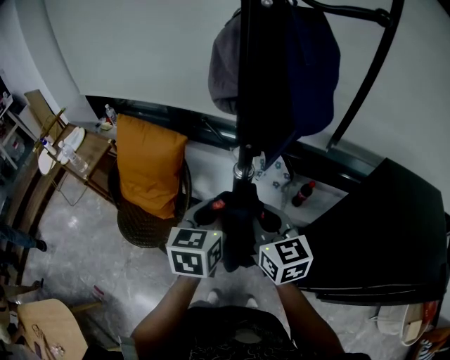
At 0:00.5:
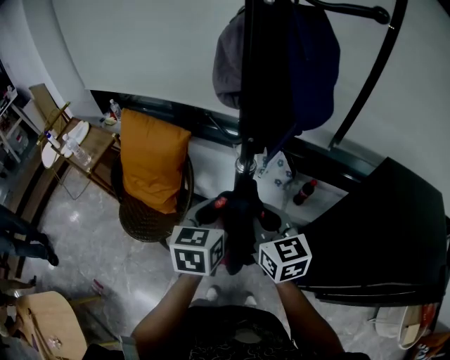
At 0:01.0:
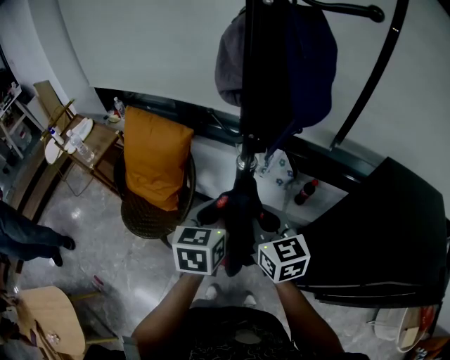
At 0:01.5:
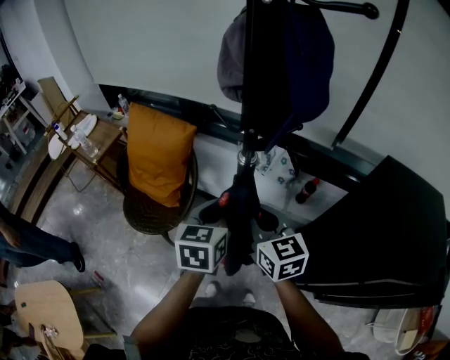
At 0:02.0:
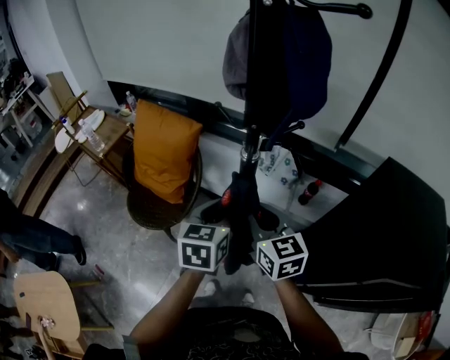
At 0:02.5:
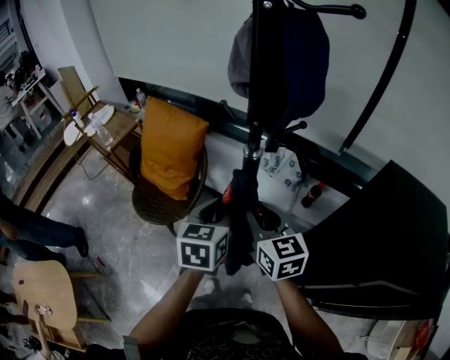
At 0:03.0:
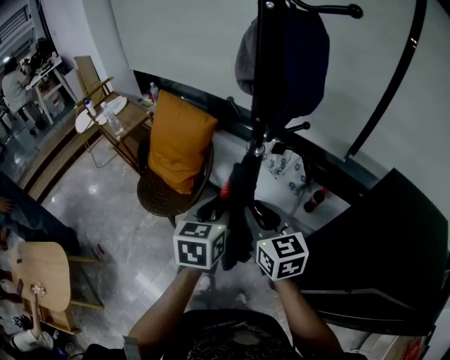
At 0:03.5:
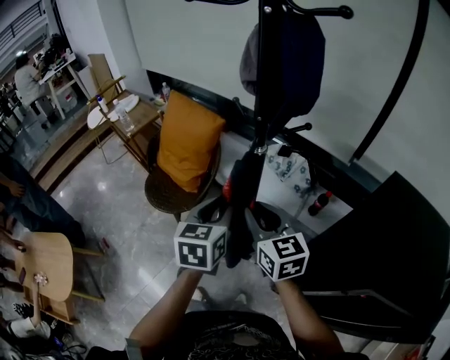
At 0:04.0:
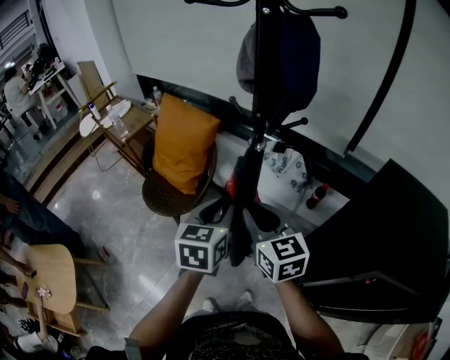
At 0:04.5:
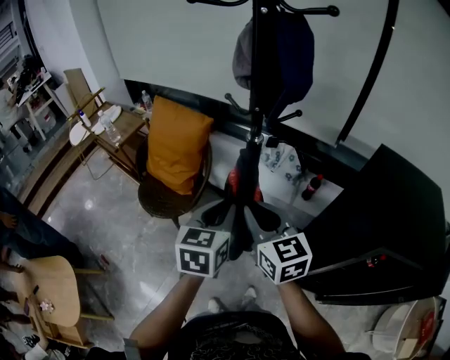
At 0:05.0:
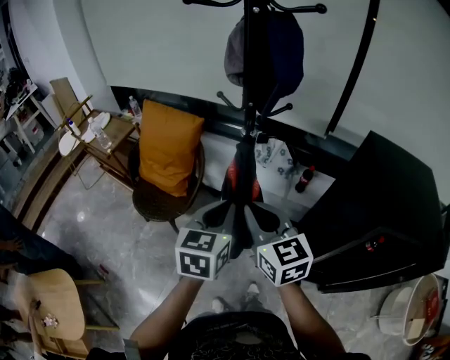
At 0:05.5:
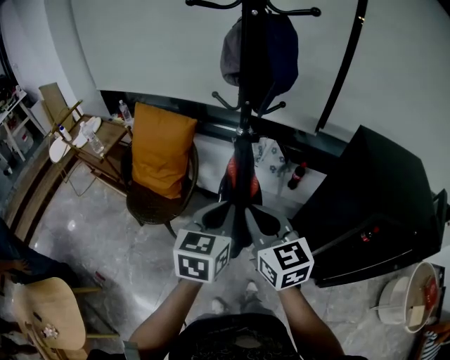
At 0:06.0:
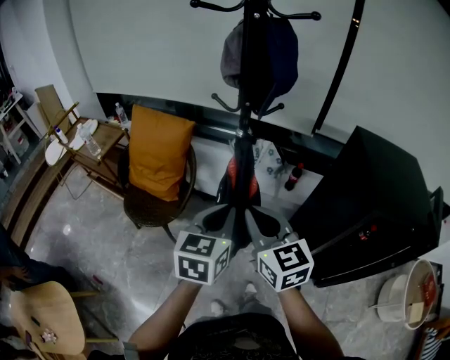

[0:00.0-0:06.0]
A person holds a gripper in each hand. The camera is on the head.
0:00.0 to 0:02.0: The left gripper heads backward, covering approximately 5 cm. Meanwhile the right gripper moves some 5 cm.
0:02.0 to 0:04.0: The grippers both shift backward by about 5 cm.
0:04.0 to 0:06.0: The two grippers go about 10 cm backward. The left gripper closes up.

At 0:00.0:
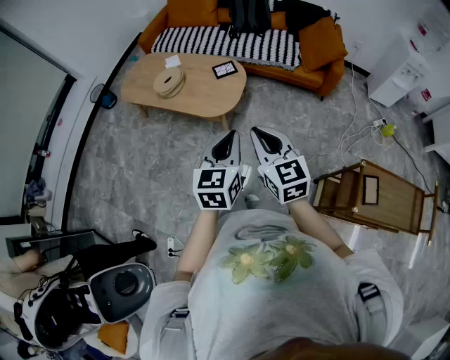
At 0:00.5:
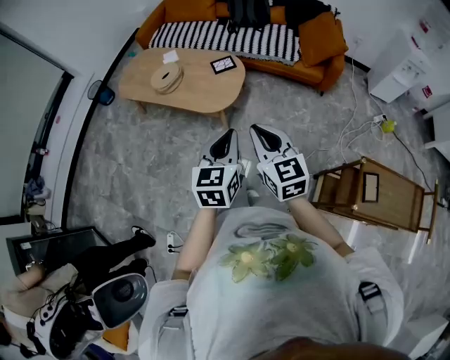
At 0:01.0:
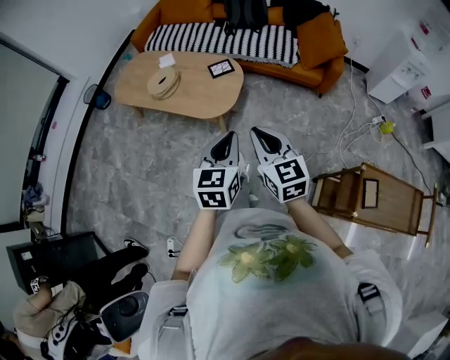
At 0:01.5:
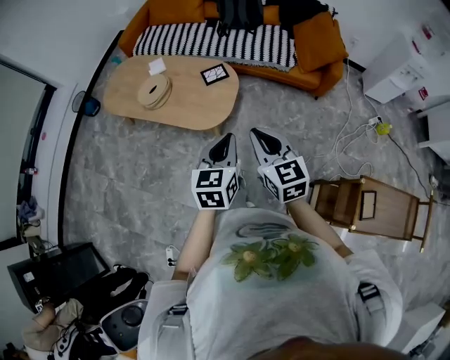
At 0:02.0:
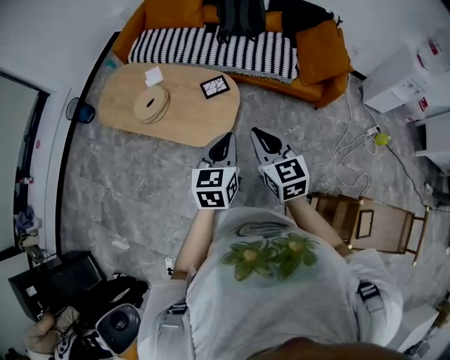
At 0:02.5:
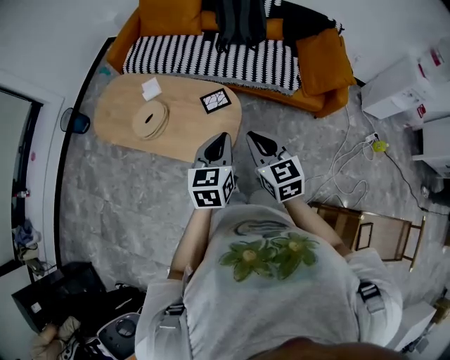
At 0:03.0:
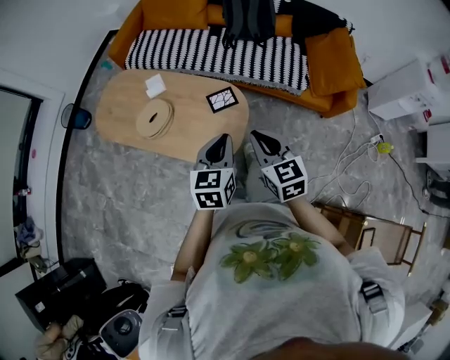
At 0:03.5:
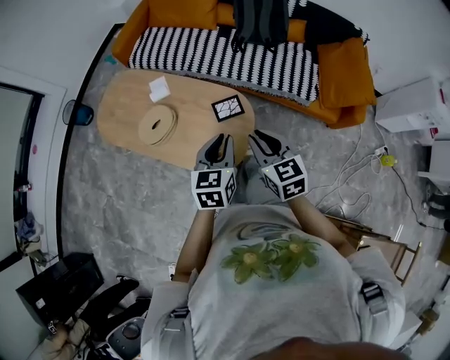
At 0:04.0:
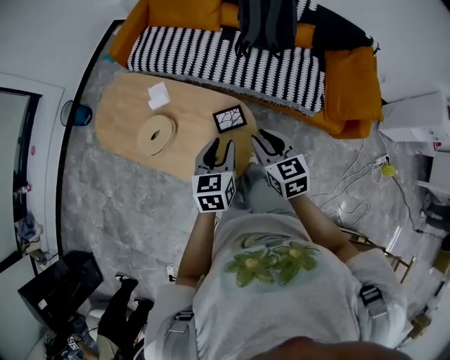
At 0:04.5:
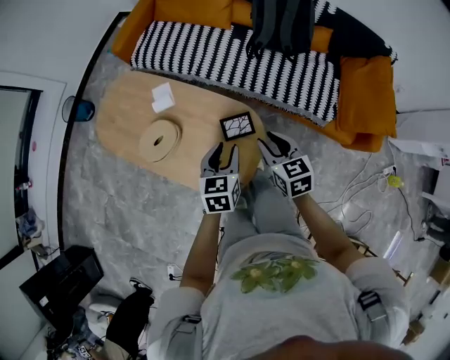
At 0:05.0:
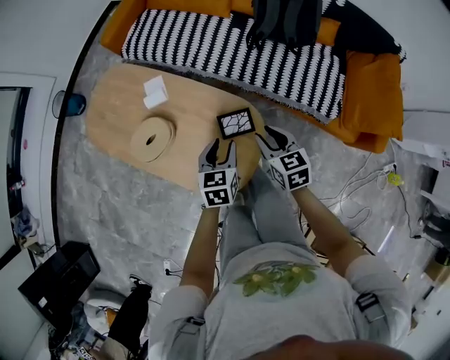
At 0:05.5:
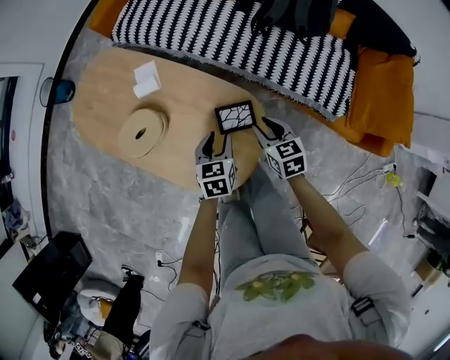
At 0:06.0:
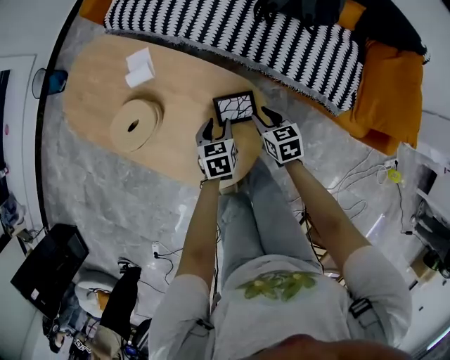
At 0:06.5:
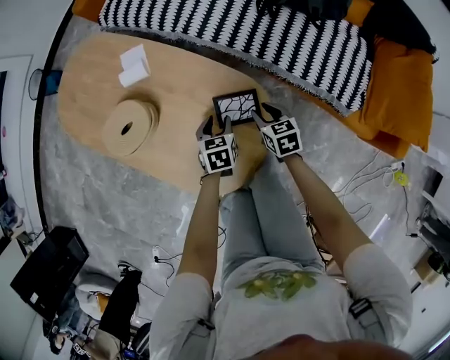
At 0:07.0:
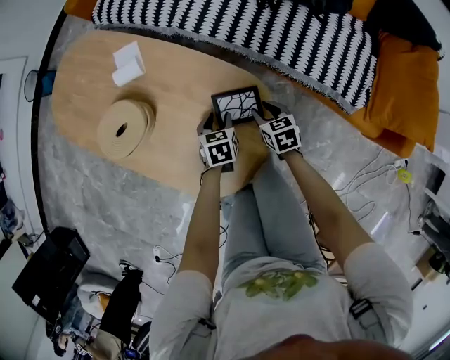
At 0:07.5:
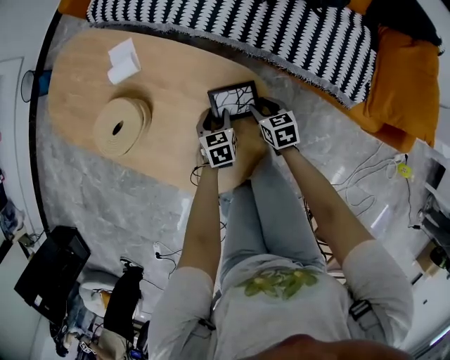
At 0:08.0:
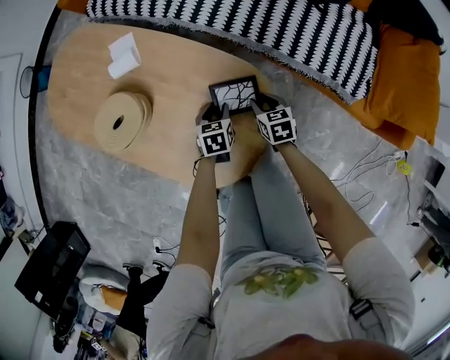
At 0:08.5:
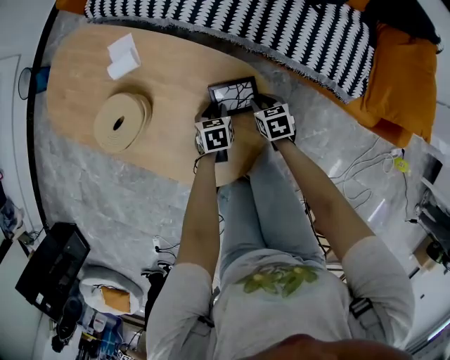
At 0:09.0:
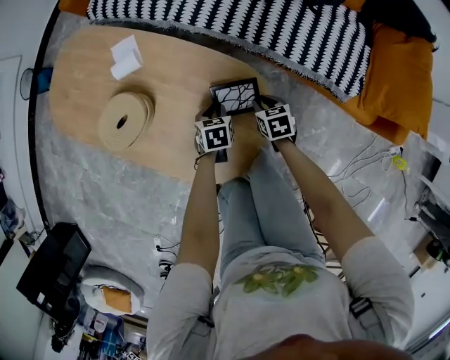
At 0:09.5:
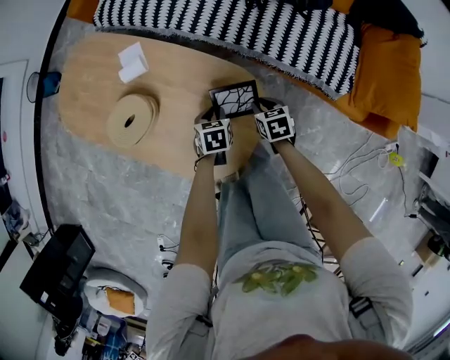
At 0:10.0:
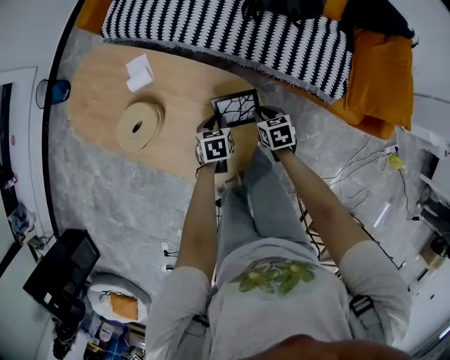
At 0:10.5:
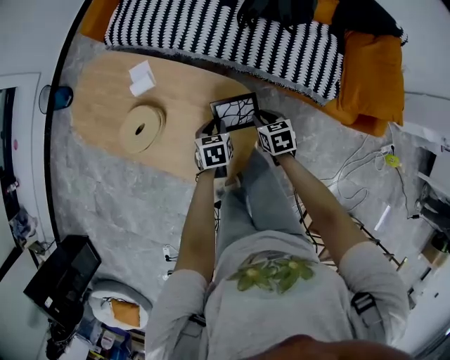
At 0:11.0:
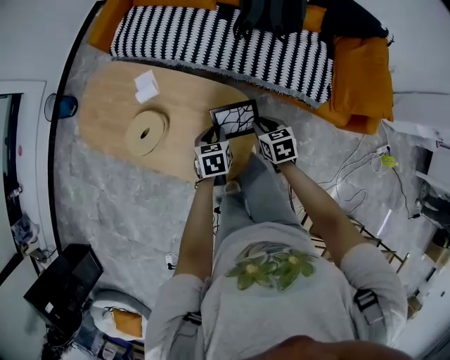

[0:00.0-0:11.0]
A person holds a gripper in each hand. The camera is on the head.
0:00.0 to 0:02.0: The grippers both shift forward by some 25 cm.
0:02.0 to 0:03.5: The two grippers go about 20 cm forward.
0:03.5 to 0:05.5: Both grippers move downward and forward, about 35 cm. The left gripper turns by approximately 20 degrees, and opens up.
0:05.5 to 0:07.5: The two grippers go approximately 20 cm downward.
0:07.5 to 0:09.0: The left gripper closes up.
0:09.0 to 0:11.0: The grippers both shift upward by roughly 25 cm.

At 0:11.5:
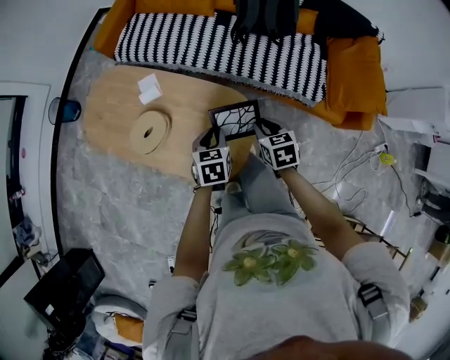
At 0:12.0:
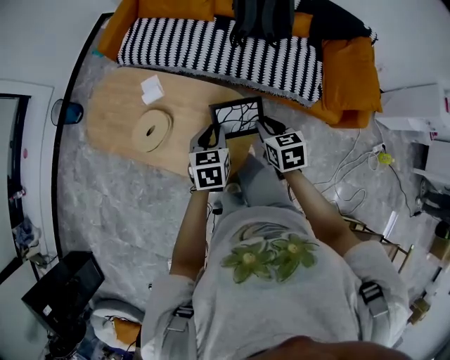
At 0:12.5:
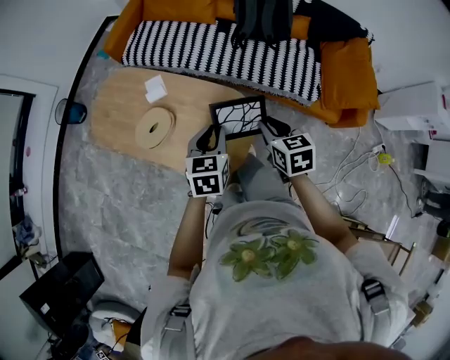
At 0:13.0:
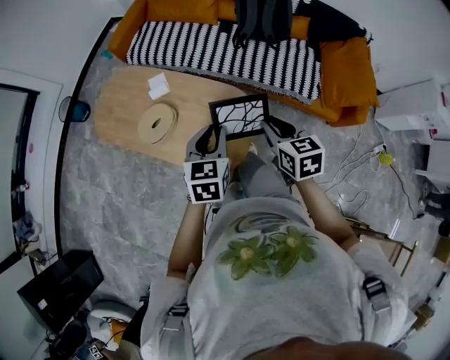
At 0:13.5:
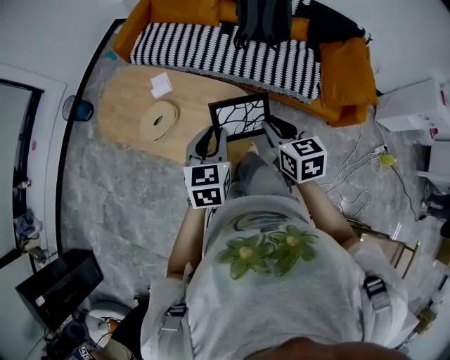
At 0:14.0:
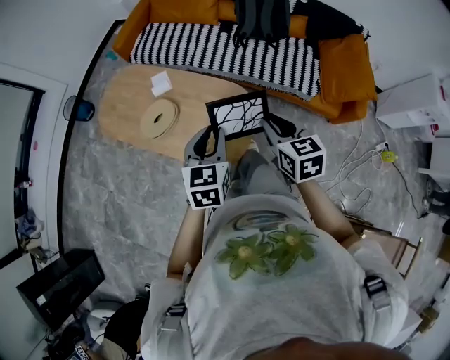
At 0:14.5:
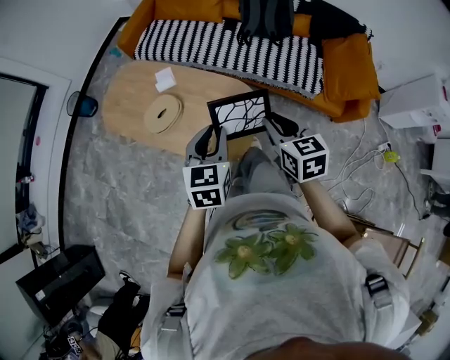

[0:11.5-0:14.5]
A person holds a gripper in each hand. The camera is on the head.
0:11.5 to 0:13.0: Both grippers move upward and backward, some 20 cm.
0:13.0 to 0:14.5: Both grippers move backward, some 5 cm.

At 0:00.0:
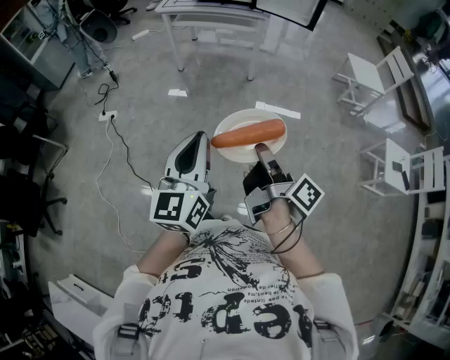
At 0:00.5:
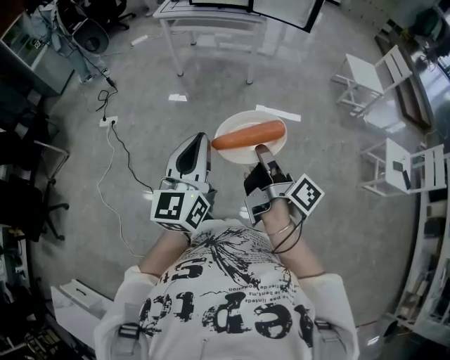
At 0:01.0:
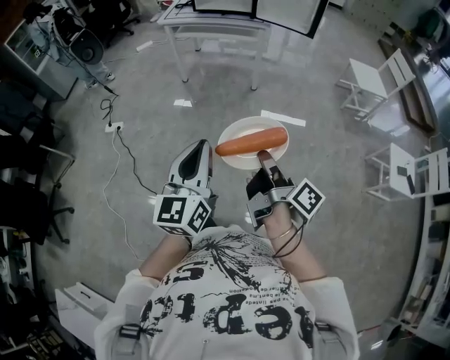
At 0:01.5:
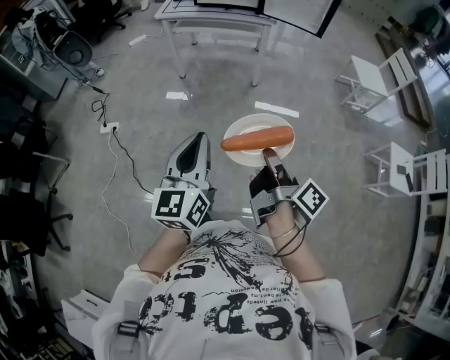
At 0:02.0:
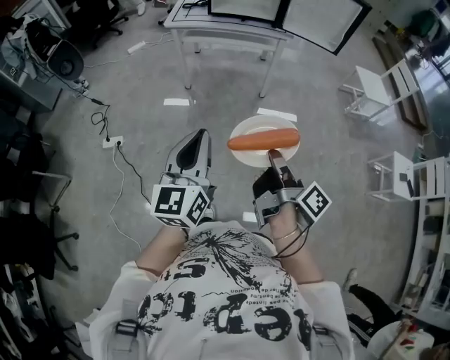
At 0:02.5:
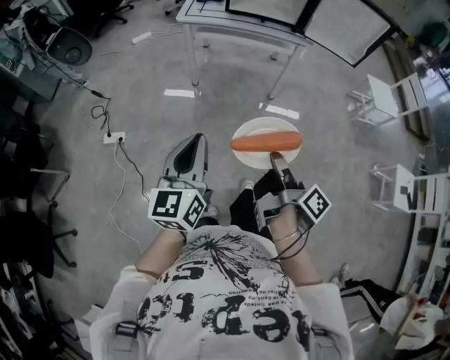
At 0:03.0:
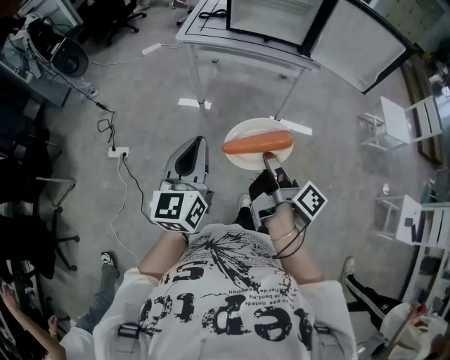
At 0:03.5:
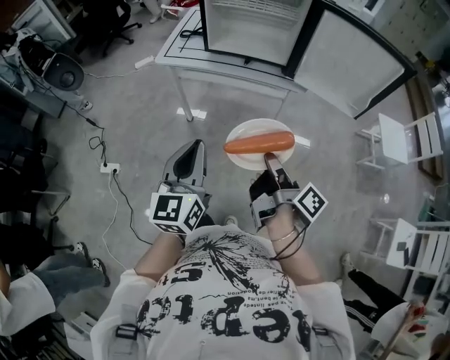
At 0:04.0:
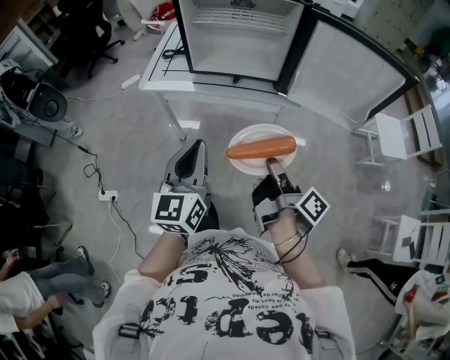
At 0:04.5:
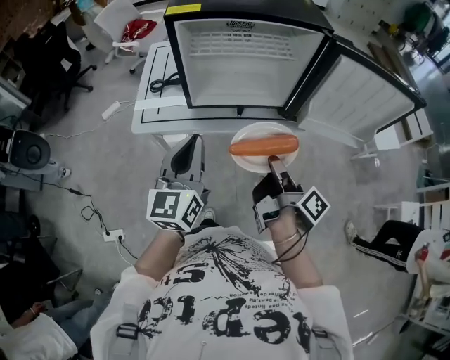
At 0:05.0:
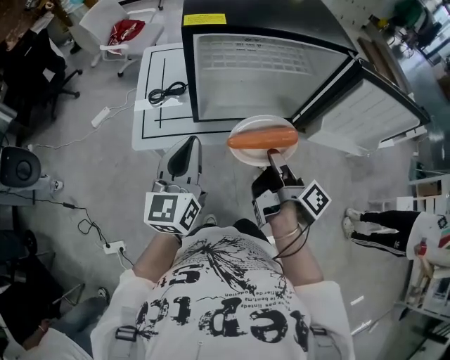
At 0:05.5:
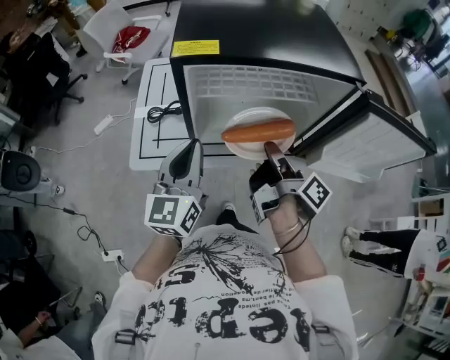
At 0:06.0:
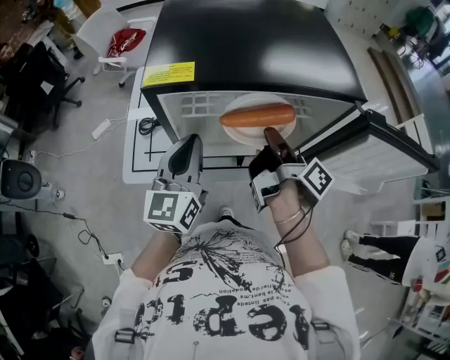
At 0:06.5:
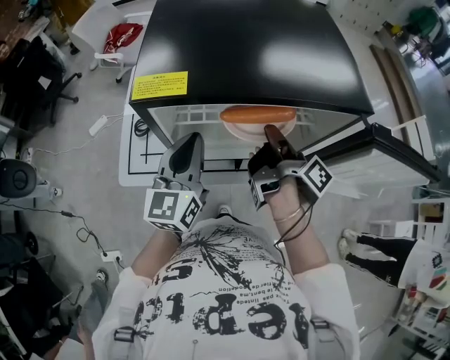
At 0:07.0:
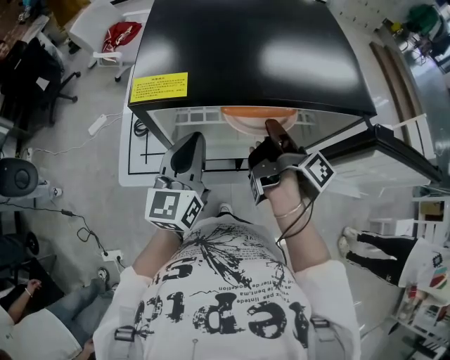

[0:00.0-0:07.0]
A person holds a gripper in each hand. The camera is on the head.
0:00.0 to 0:02.0: The left gripper shifts by about 35 cm.
0:02.0 to 0:03.5: The left gripper moves roughly 40 cm.
0:03.5 to 0:05.0: The left gripper shifts by about 40 cm.
0:05.0 to 0:07.0: The left gripper moves some 20 cm.
